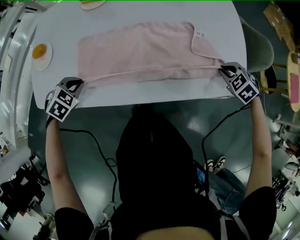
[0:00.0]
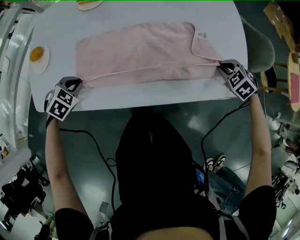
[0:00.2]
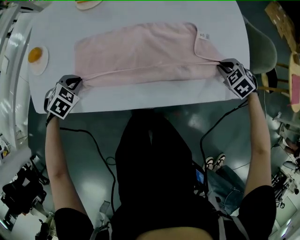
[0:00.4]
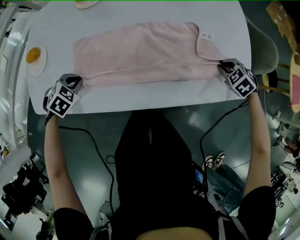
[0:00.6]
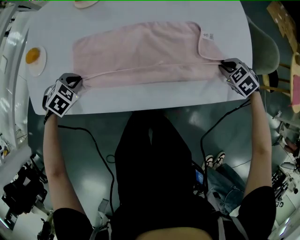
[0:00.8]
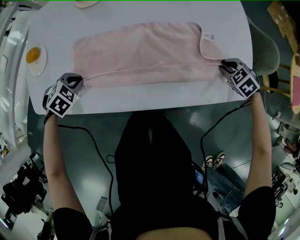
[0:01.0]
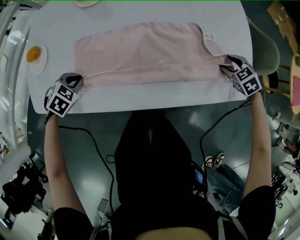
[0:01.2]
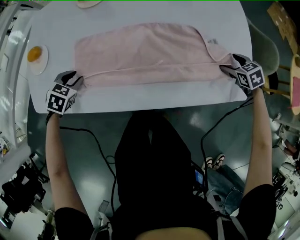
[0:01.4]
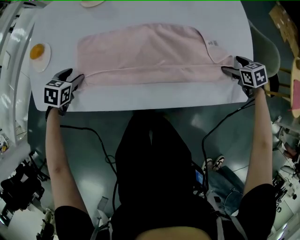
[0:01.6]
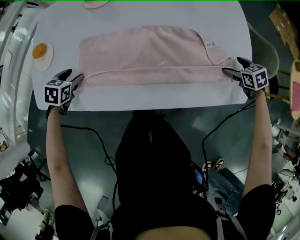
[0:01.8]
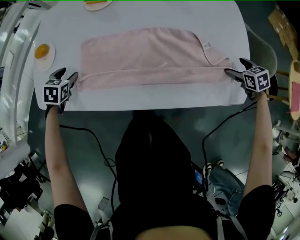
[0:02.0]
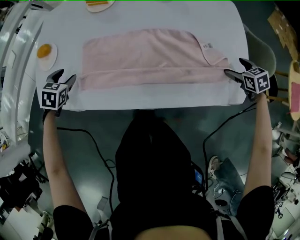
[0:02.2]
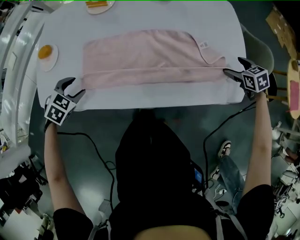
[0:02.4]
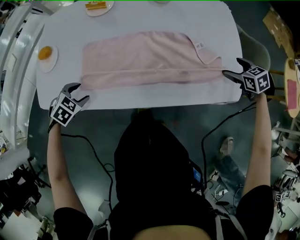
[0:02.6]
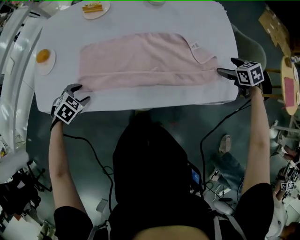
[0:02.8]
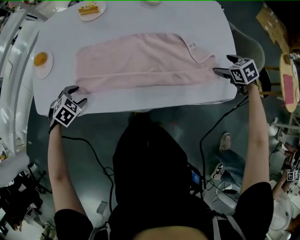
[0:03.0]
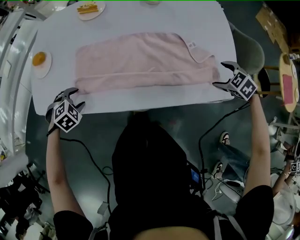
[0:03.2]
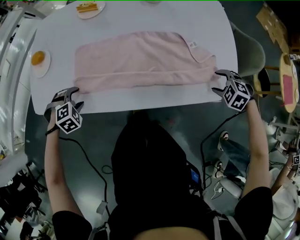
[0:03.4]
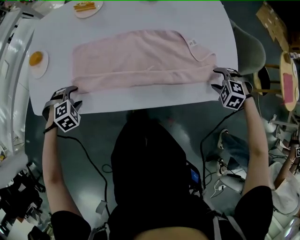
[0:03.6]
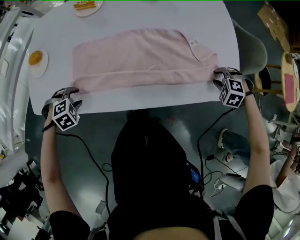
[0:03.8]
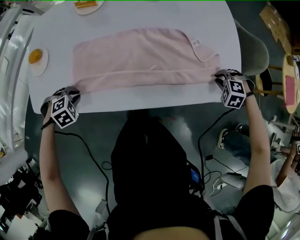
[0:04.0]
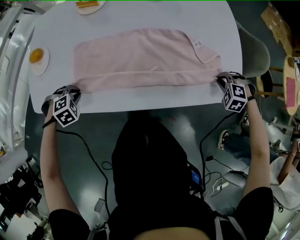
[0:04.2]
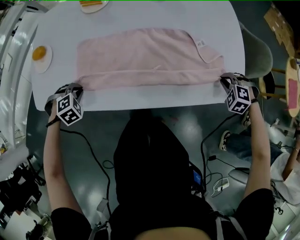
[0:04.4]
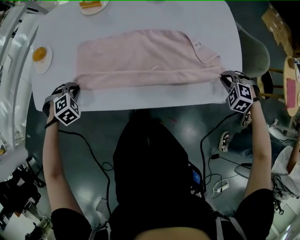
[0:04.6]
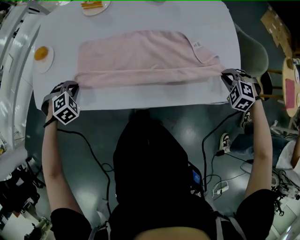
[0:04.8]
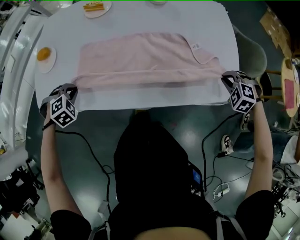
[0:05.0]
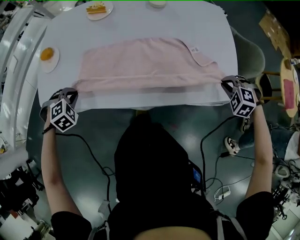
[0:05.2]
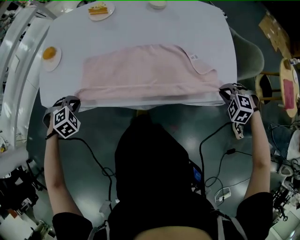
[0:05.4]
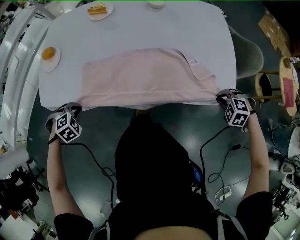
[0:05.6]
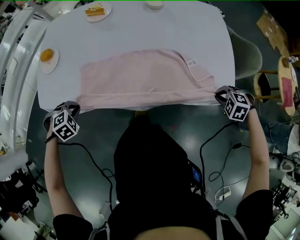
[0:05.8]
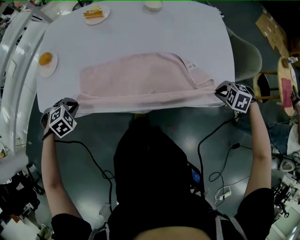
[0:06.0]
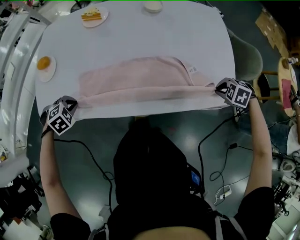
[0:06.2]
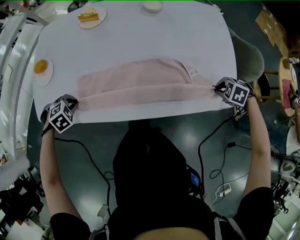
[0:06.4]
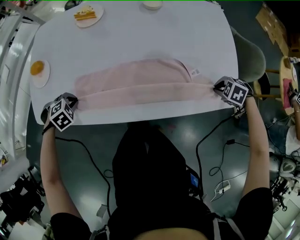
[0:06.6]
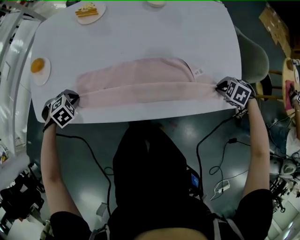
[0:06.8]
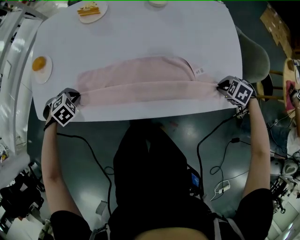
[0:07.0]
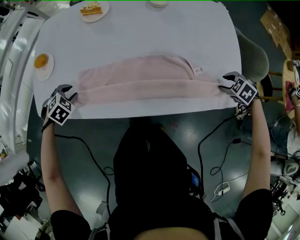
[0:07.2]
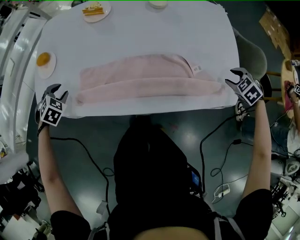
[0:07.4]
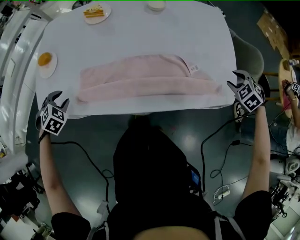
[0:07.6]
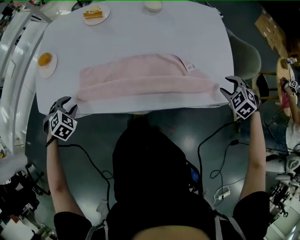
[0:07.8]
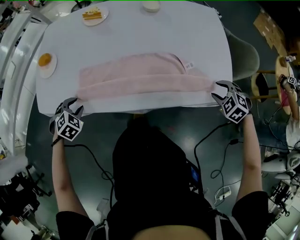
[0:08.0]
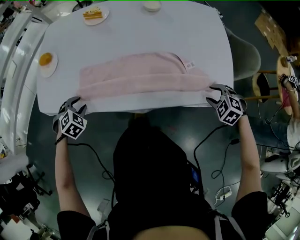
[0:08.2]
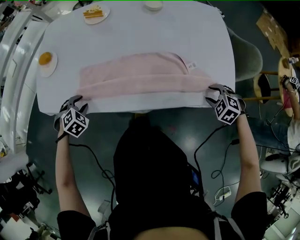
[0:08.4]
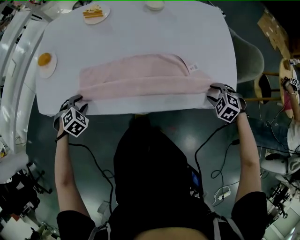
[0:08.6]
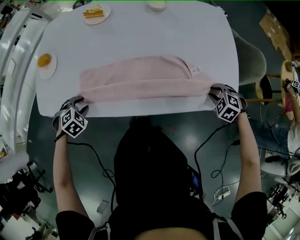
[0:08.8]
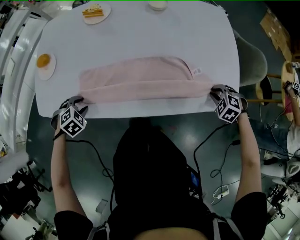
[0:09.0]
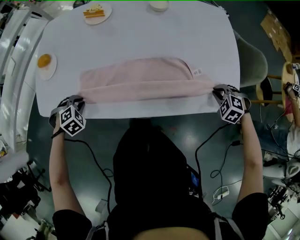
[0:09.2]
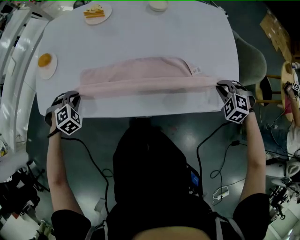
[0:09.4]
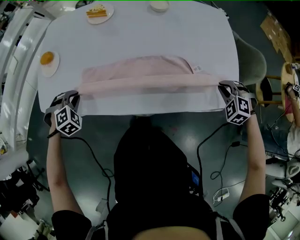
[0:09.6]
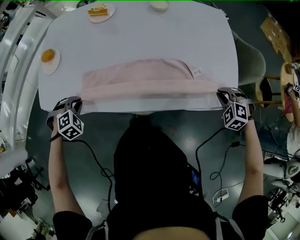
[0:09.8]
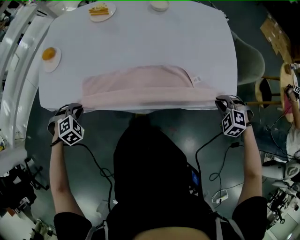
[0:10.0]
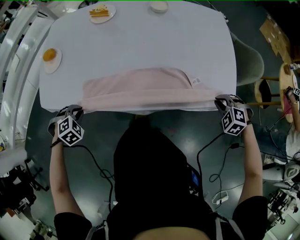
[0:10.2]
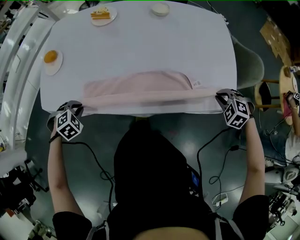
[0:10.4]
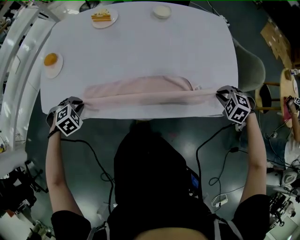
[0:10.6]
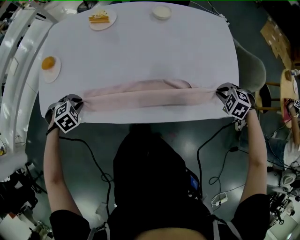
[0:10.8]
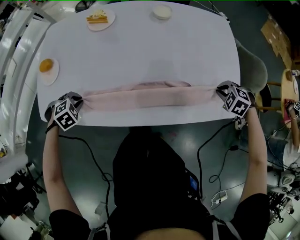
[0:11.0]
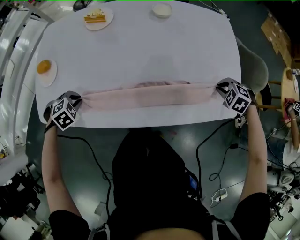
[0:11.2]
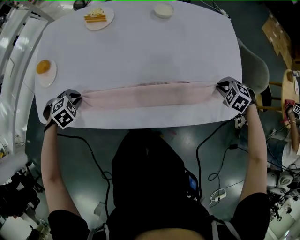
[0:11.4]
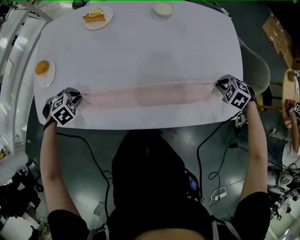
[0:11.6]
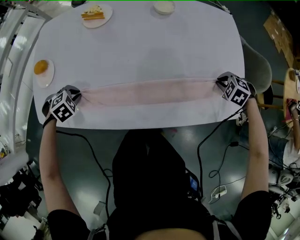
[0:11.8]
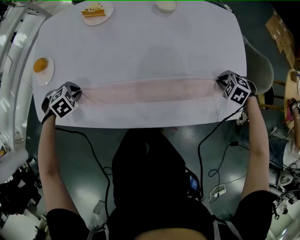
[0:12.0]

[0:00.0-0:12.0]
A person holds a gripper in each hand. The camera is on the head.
0:00.0 to 0:01.6: The right gripper ends up some 10 cm from where it was, changes its angle by roughly 30 degrees, and opens up, while the left gripper shifts by roughly 10 cm, turns by some 30 degrees, and opens up.
0:01.6 to 0:03.0: The right gripper goes approximately 5 cm upward, while the left gripper moves backward, some 10 cm, and turns by approximately 30 degrees.
0:03.0 to 0:04.4: The left gripper turns by approximately 20 degrees, and closes its fingers. Meanwhile the right gripper shifts by roughly 10 cm, twists some 50 degrees counterclockwise, seen from behind, and closes.
0:04.4 to 0:06.0: The left gripper changes place by some 10 cm. Meanwhile the right gripper changes place by about 10 cm, and turns by some 20 degrees.
0:06.0 to 0:07.6: The right gripper ends up about 10 cm from where it was, changes its angle by some 30 degrees, and opens its fingers. Meanwhile the left gripper moves approximately 10 cm, changes its angle by approximately 20 degrees, and opens up.
0:07.6 to 0:09.0: The right gripper shifts roughly 10 cm downward. Meanwhile the left gripper changes place by about 10 cm.
0:09.0 to 0:10.4: The left gripper moves roughly 5 cm. The right gripper travels upward by about 5 cm.
0:10.4 to 0:12.0: The right gripper moves roughly 15 cm. The left gripper ends up roughly 15 cm from where it was.

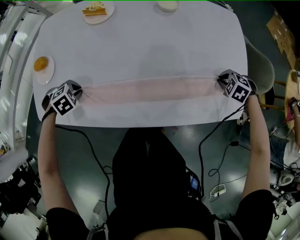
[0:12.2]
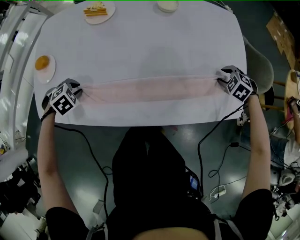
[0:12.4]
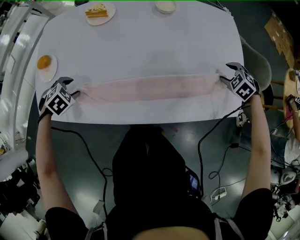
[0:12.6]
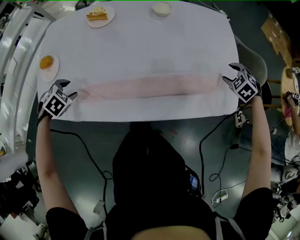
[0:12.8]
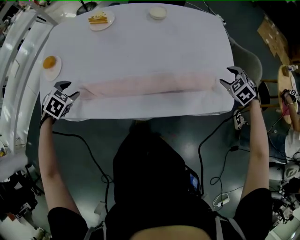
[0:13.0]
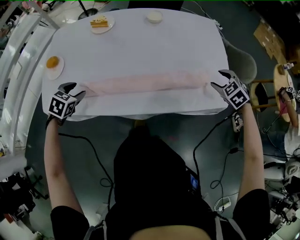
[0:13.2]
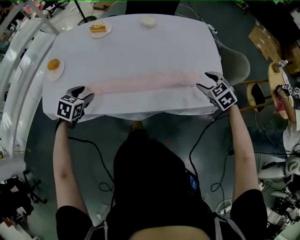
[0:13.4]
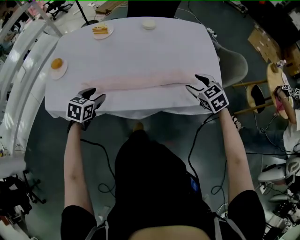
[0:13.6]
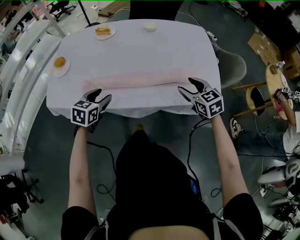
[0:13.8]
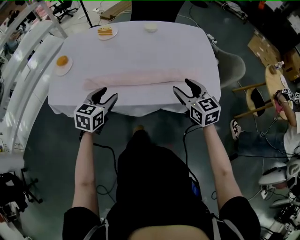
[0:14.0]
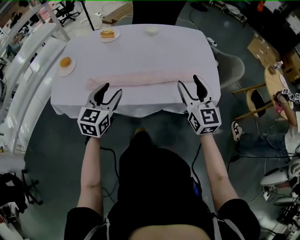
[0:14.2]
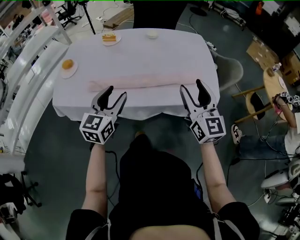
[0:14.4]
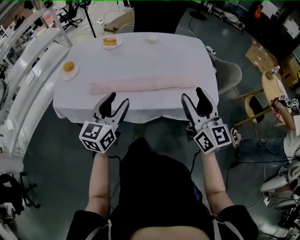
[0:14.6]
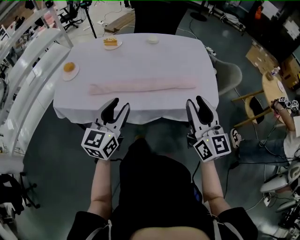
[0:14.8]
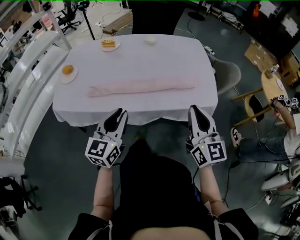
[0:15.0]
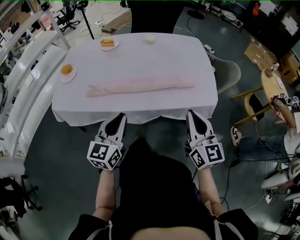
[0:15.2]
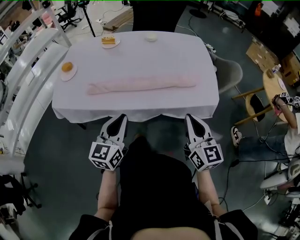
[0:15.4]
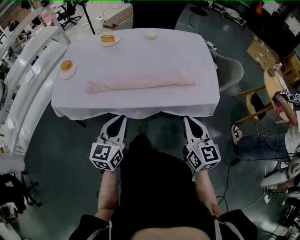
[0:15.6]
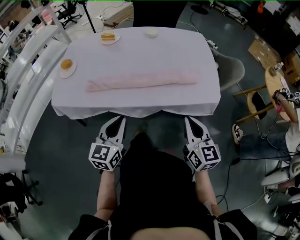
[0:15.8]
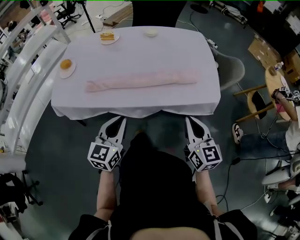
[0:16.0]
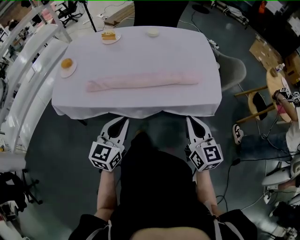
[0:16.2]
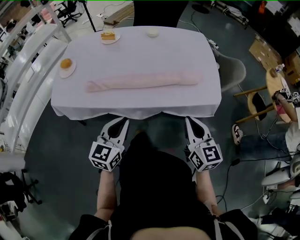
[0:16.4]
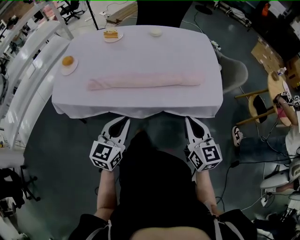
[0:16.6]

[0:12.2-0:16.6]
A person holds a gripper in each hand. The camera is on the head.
0:12.2 to 0:13.6: The right gripper shifts by roughly 20 cm, points its fingers some 40 degrees further upward, and opens its fingers; the left gripper ends up some 25 cm from where it was, tilts its fingers some 40 degrees upward, and opens up.
0:13.6 to 0:15.2: The right gripper moves backward and upward, some 25 cm, points its fingers roughly 40 degrees further upward, and closes its fingers. The left gripper moves backward, upward and to the right, approximately 25 cm, angles its fingers upward, by about 40 degrees, and closes.
0:15.2 to 0:16.6: The right gripper is displaced downward by roughly 5 cm.

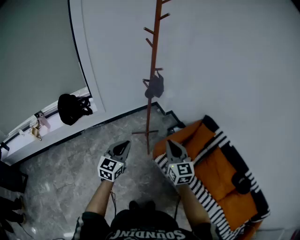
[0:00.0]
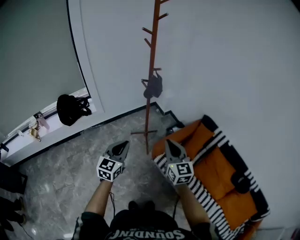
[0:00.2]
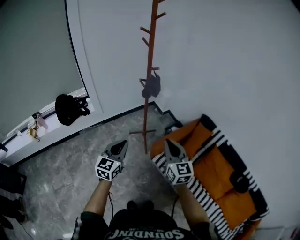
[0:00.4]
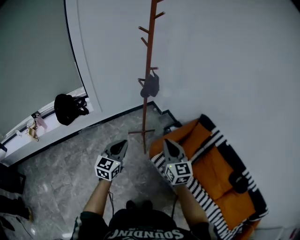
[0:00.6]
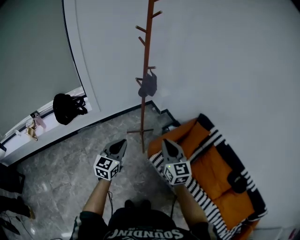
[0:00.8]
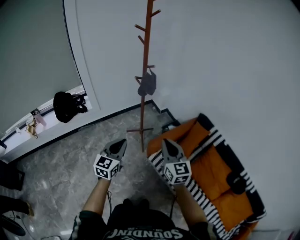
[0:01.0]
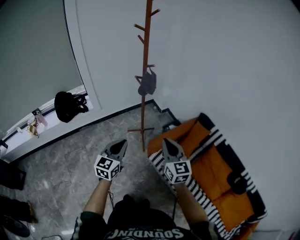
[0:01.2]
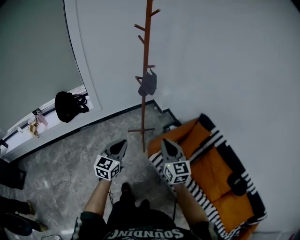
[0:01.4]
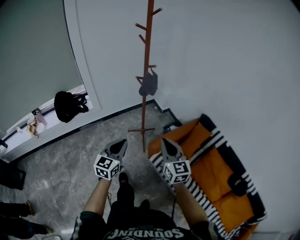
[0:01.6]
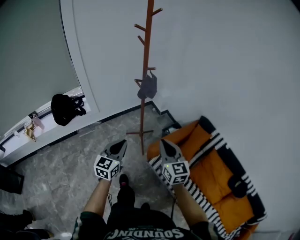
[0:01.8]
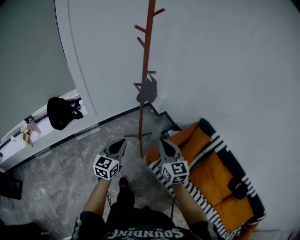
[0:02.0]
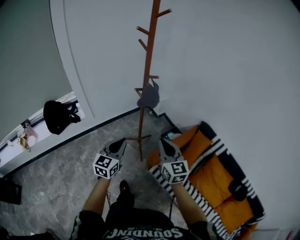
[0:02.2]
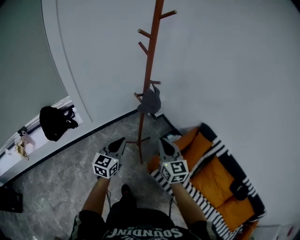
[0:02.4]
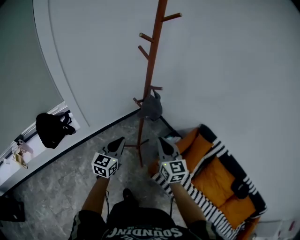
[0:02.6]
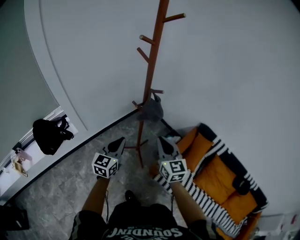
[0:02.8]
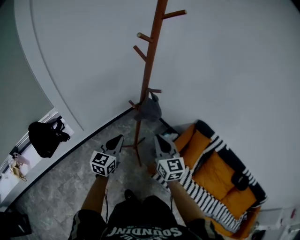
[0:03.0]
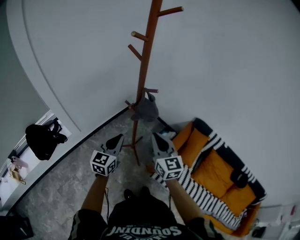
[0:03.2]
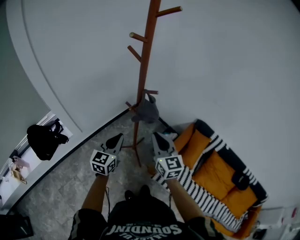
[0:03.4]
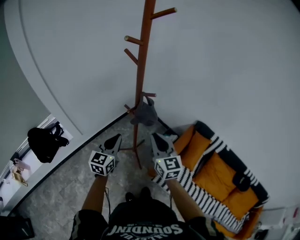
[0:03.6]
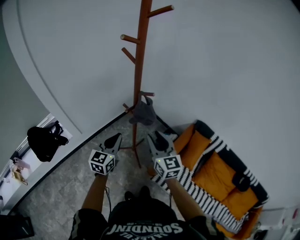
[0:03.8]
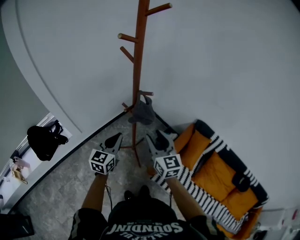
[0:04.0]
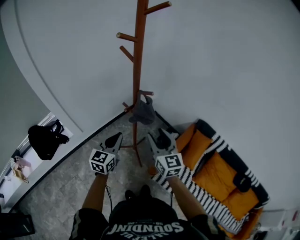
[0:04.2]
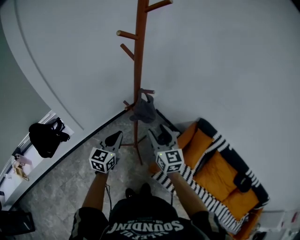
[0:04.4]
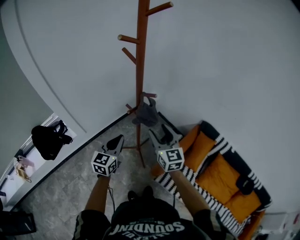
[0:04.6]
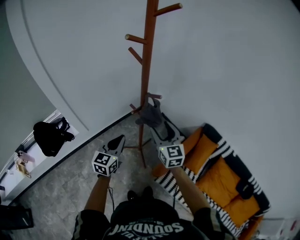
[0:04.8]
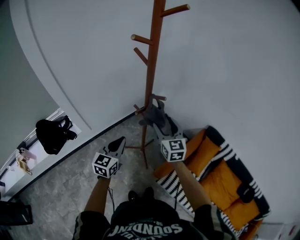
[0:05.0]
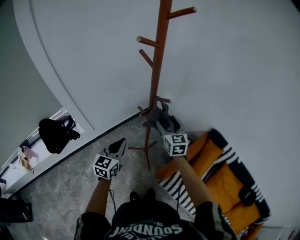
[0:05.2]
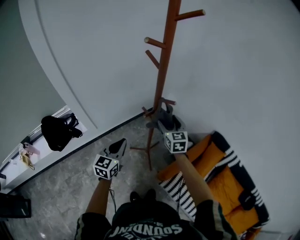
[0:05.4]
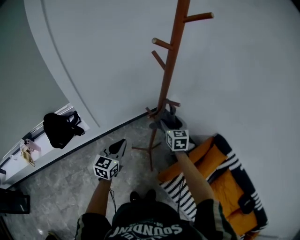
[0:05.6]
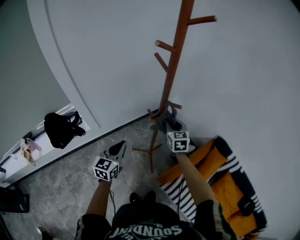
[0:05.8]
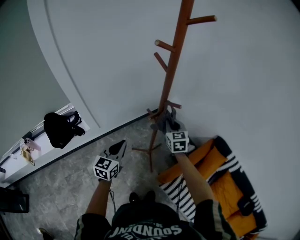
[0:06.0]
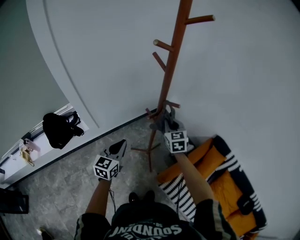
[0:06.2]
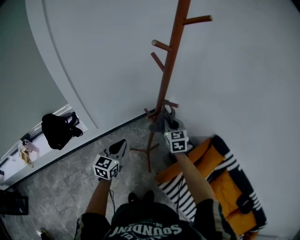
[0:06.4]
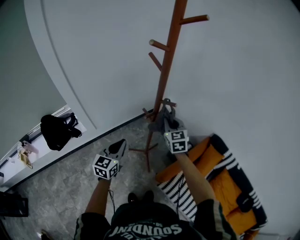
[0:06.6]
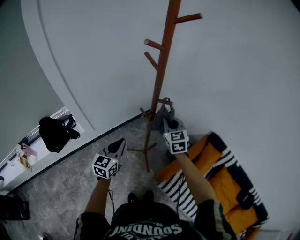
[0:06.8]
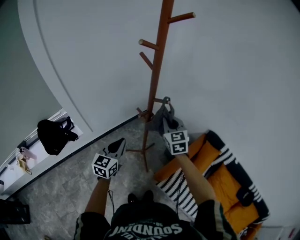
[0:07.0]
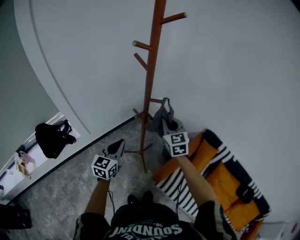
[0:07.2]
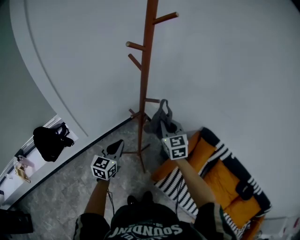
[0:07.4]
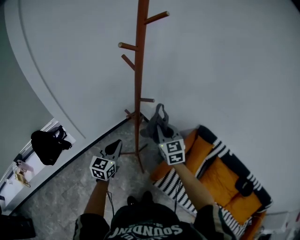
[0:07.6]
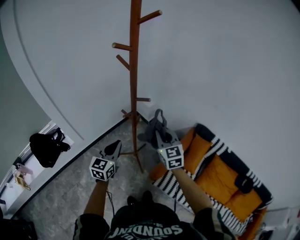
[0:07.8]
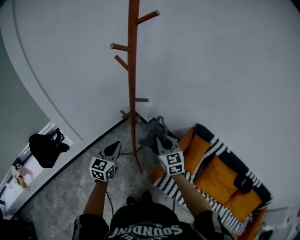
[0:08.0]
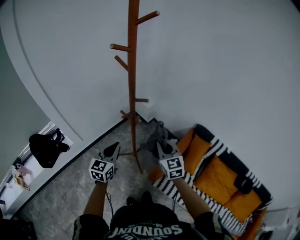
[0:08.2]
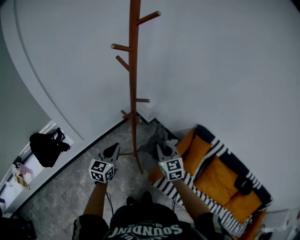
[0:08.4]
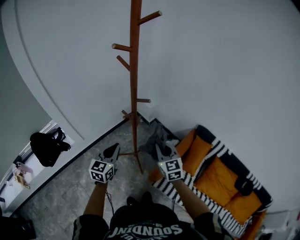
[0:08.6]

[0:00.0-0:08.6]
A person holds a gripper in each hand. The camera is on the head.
0:00.0 to 0:01.4: There are only small adjustments of the grippers.
0:01.4 to 0:02.8: The grippers both shift forward and to the left by approximately 30 cm.
0:02.8 to 0:04.4: The grippers both shift forward by roughly 10 cm. The right gripper opens its fingers.
0:04.4 to 0:05.8: The right gripper goes roughly 15 cm forward and downward, turns by about 20 degrees, and closes up, while the left gripper heads to the left, covering roughly 10 cm.
0:05.8 to 0:07.2: The left gripper moves roughly 5 cm. Meanwhile the right gripper goes roughly 10 cm upward and backward.
0:07.2 to 0:08.6: The right gripper is displaced backward and downward by roughly 15 cm.
